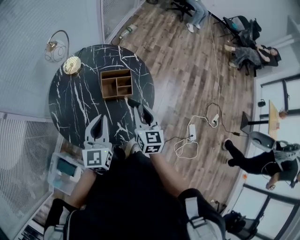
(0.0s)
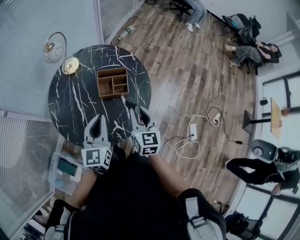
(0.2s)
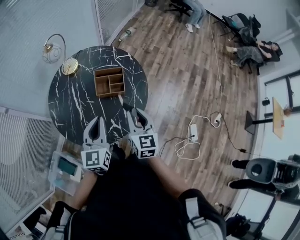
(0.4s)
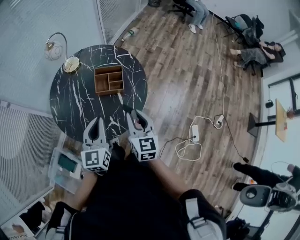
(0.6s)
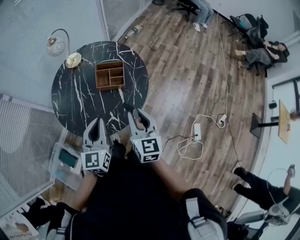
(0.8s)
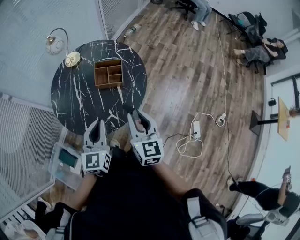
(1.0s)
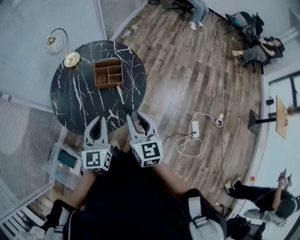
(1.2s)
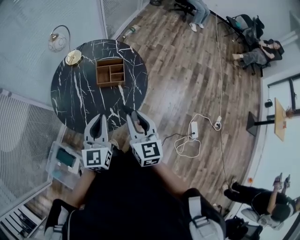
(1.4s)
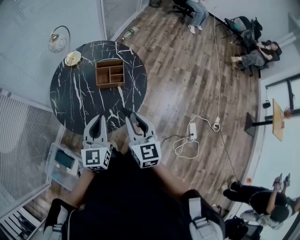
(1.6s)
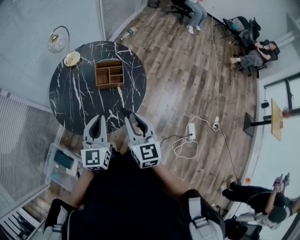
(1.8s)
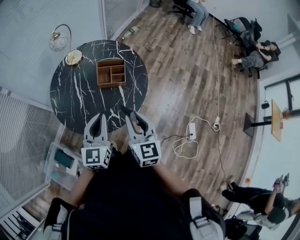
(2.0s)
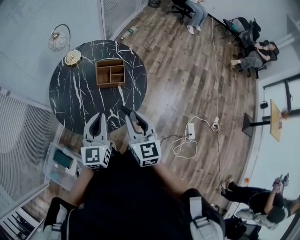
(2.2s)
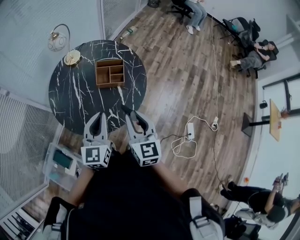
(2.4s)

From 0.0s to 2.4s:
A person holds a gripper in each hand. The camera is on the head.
From 0.0s to 1.2s: The left gripper moves backward and to the right, about 15 cm. Meanwhile the right gripper heads backward and upward, covering roughly 15 cm.
From 1.2s to 2.4s: The grippers stay close to where they were, moving slightly.

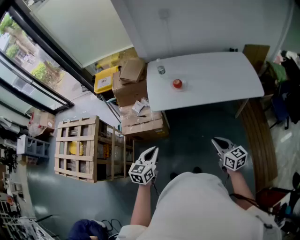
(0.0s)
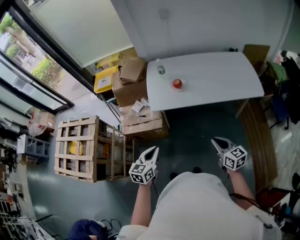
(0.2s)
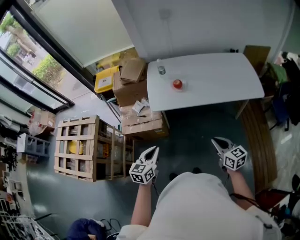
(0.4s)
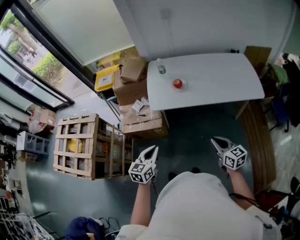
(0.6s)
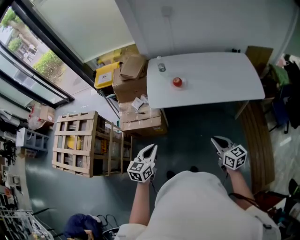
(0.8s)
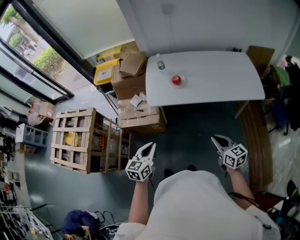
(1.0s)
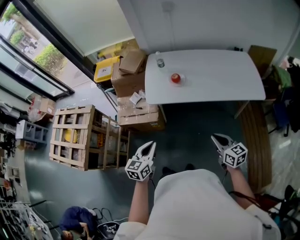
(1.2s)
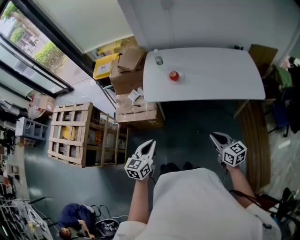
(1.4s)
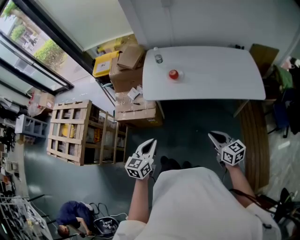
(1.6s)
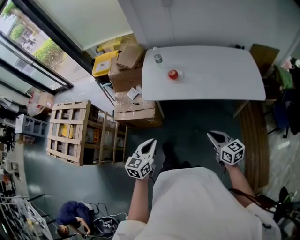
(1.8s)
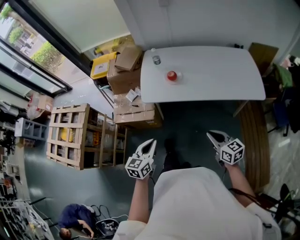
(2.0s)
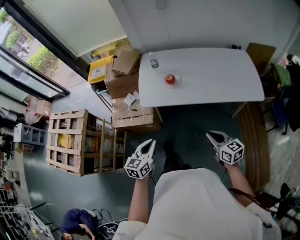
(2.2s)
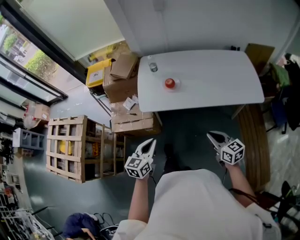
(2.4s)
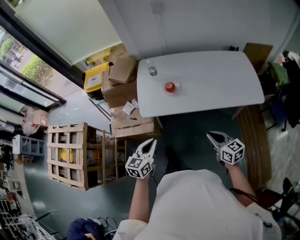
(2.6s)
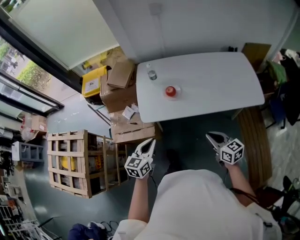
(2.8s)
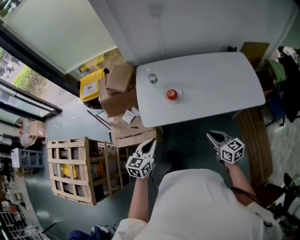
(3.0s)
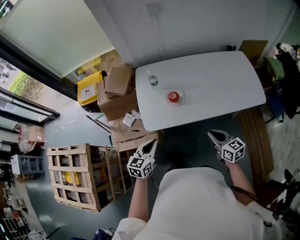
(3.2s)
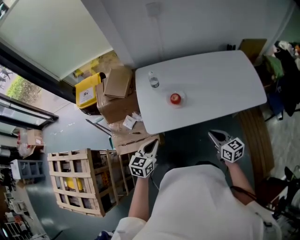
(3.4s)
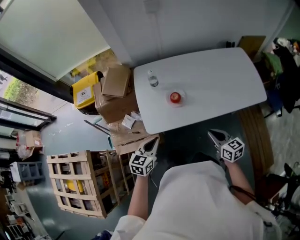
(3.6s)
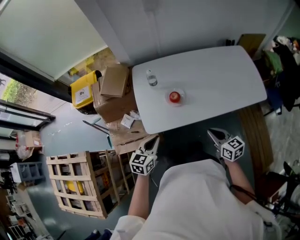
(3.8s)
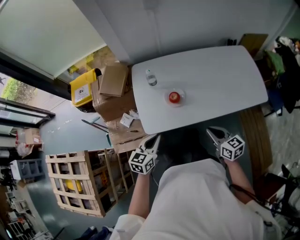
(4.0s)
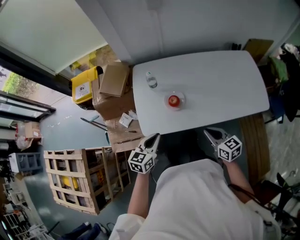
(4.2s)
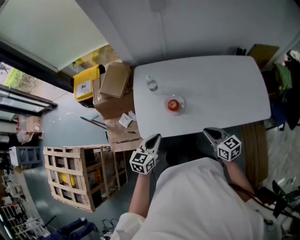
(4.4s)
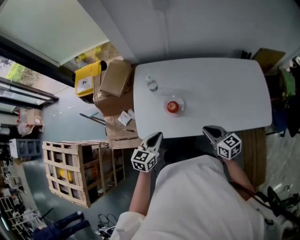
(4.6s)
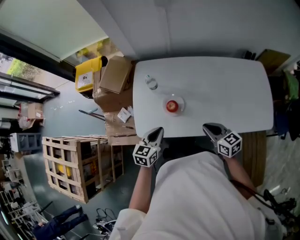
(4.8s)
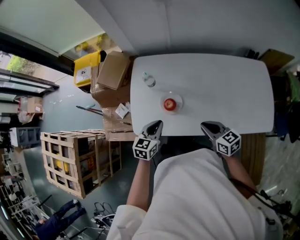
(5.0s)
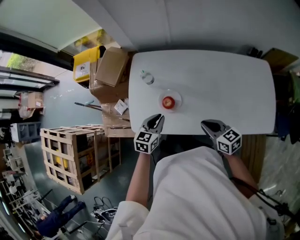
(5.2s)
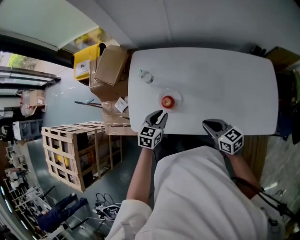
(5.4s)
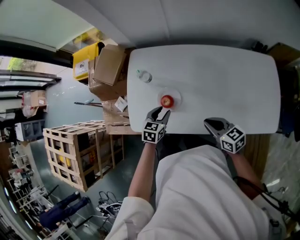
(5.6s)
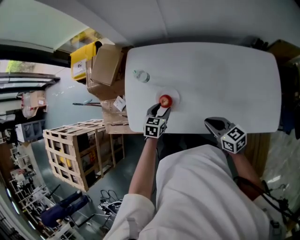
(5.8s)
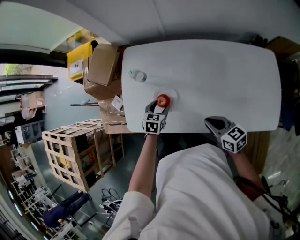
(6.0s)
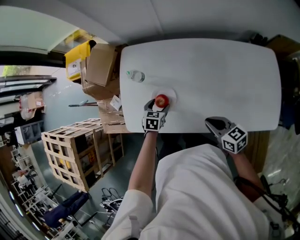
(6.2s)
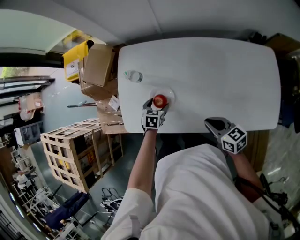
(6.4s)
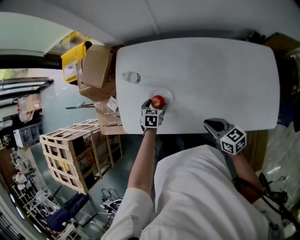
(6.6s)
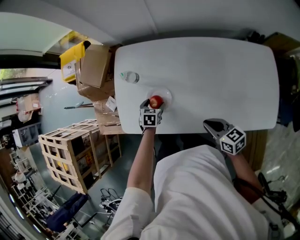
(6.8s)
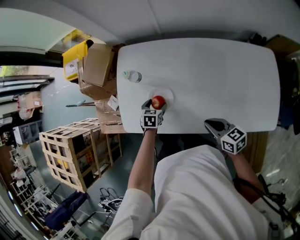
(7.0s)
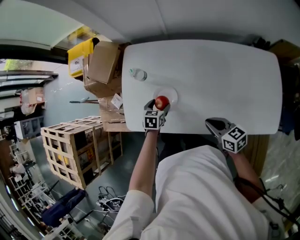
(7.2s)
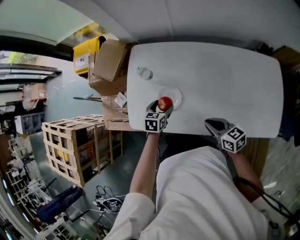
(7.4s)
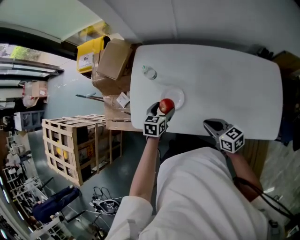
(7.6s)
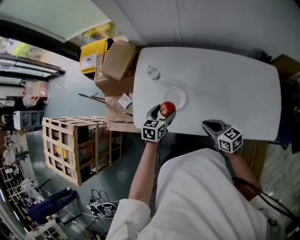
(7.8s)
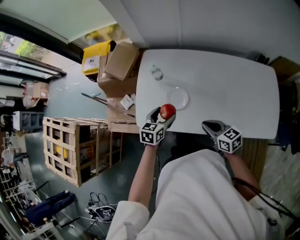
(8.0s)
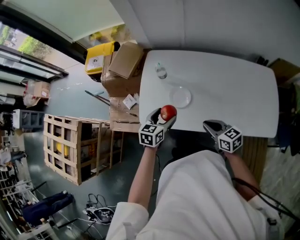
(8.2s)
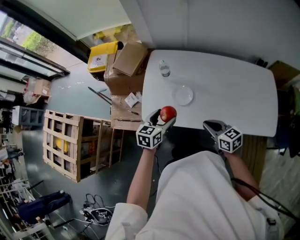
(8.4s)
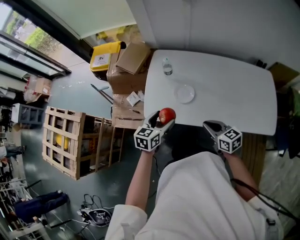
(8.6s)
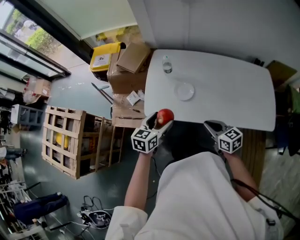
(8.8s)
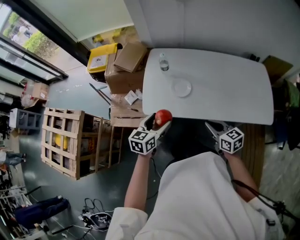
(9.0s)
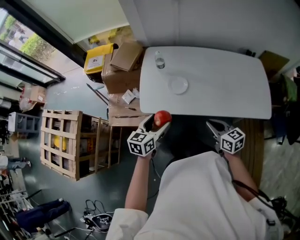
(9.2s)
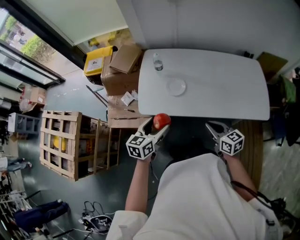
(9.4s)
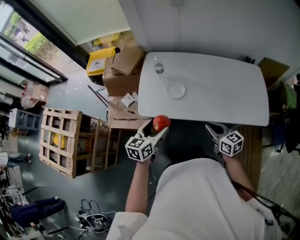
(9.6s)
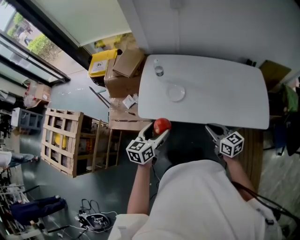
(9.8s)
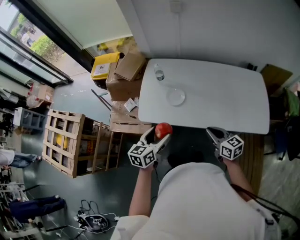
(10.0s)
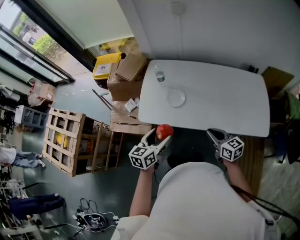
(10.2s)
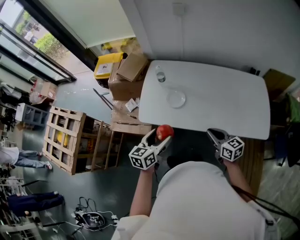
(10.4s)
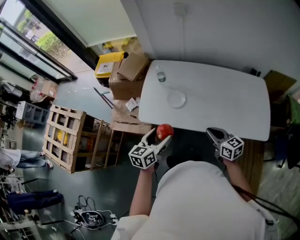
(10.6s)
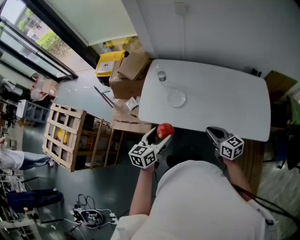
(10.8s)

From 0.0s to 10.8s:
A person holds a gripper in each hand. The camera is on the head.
From 0.0s to 1.6s: Both grippers move to the right, approximately 5 cm.
From 1.6s to 3.0s: Both grippers move forward, approximately 20 cm.
From 3.0s to 4.6s: Both grippers move forward, some 15 cm.
From 4.6s to 6.2s: The right gripper is displaced to the right, downward and forward by about 10 cm. The left gripper heads downward, forward and to the right, covering about 25 cm, swivels roughly 30 degrees, and opens its fingers.
From 6.2s to 7.8s: The left gripper goes roughly 10 cm upward; the right gripper travels to the left by some 5 cm.
From 7.8s to 9.2s: The left gripper heads backward, upward and to the left, covering roughly 25 cm, while the right gripper shifts roughly 15 cm backward.
From 9.2s to 10.8s: The grippers both shift to the right by roughly 5 cm.

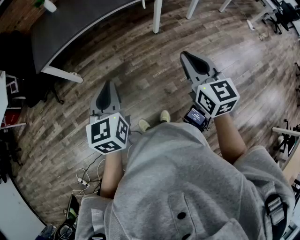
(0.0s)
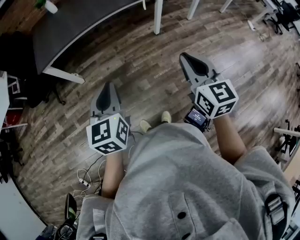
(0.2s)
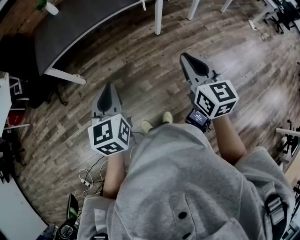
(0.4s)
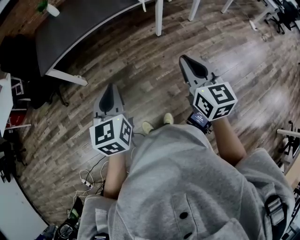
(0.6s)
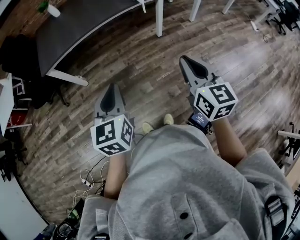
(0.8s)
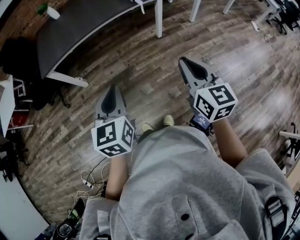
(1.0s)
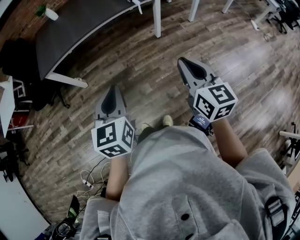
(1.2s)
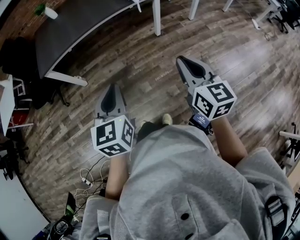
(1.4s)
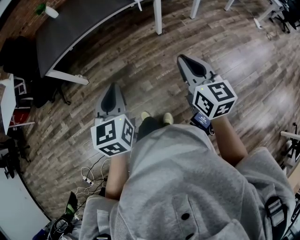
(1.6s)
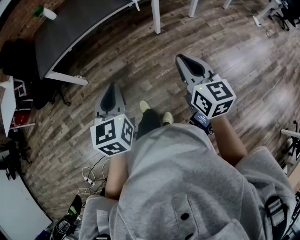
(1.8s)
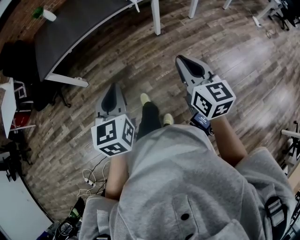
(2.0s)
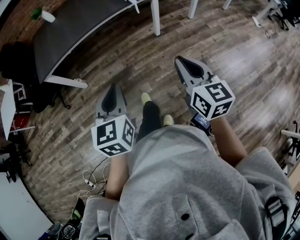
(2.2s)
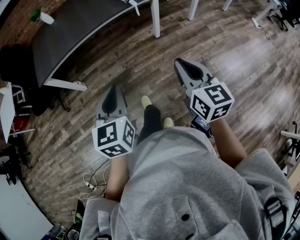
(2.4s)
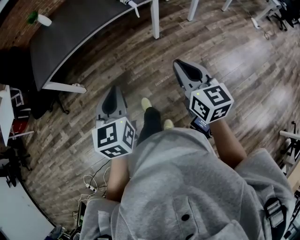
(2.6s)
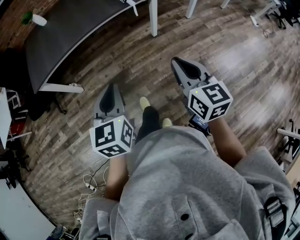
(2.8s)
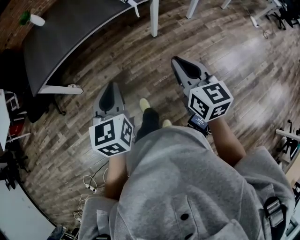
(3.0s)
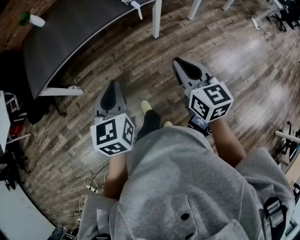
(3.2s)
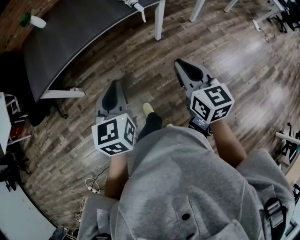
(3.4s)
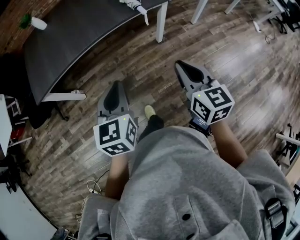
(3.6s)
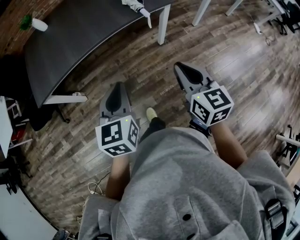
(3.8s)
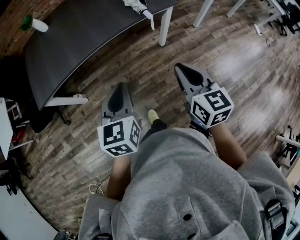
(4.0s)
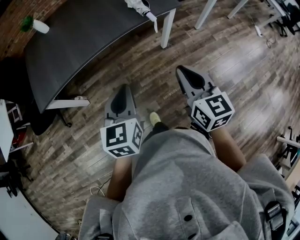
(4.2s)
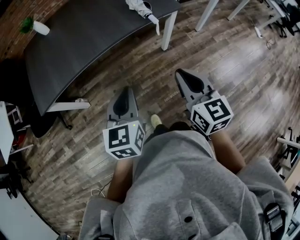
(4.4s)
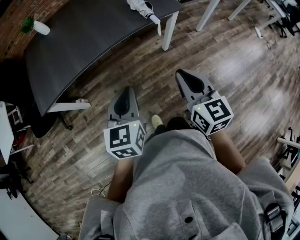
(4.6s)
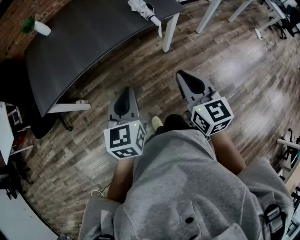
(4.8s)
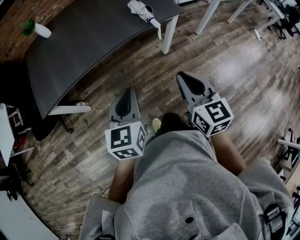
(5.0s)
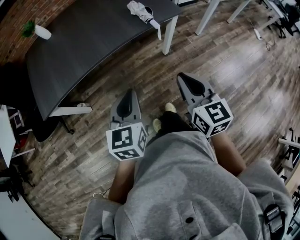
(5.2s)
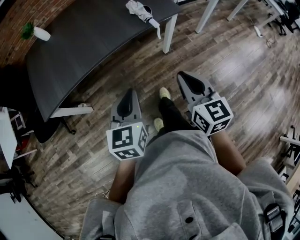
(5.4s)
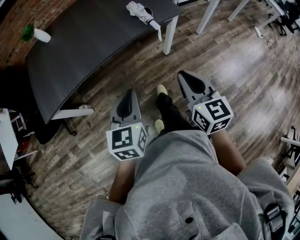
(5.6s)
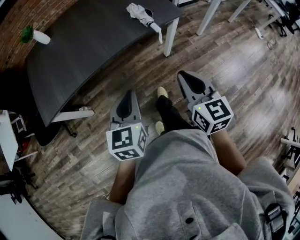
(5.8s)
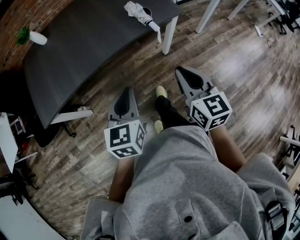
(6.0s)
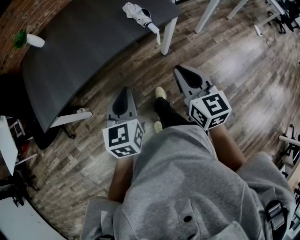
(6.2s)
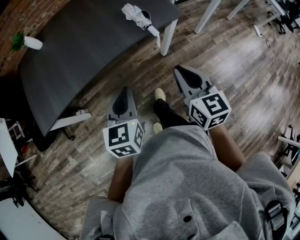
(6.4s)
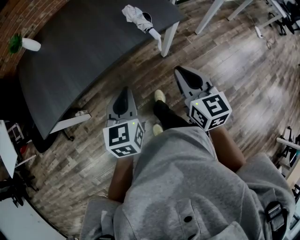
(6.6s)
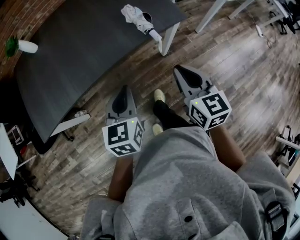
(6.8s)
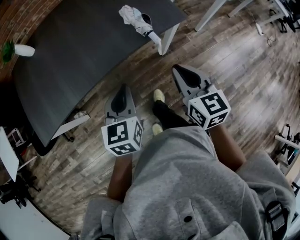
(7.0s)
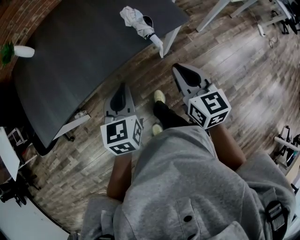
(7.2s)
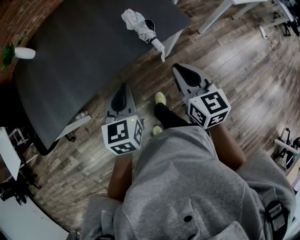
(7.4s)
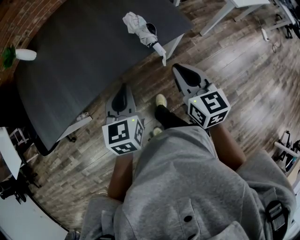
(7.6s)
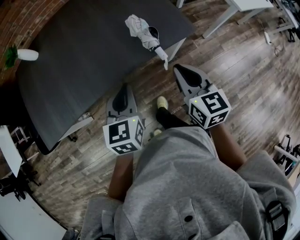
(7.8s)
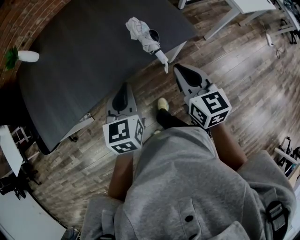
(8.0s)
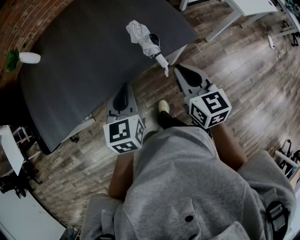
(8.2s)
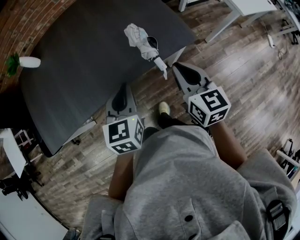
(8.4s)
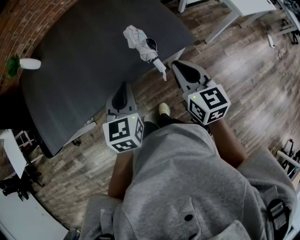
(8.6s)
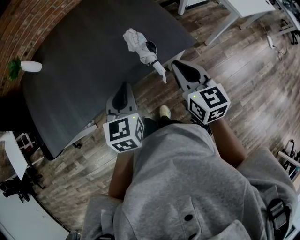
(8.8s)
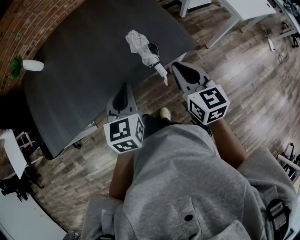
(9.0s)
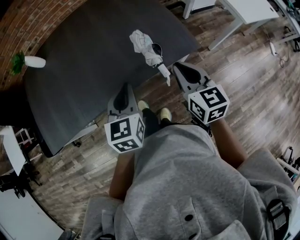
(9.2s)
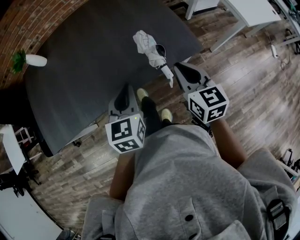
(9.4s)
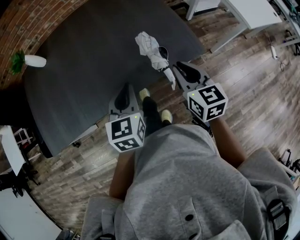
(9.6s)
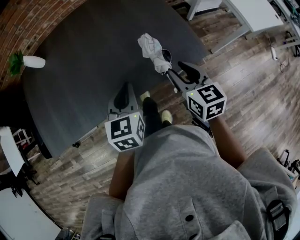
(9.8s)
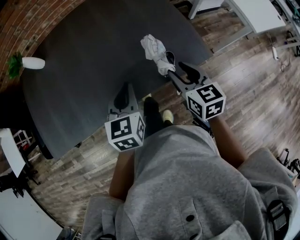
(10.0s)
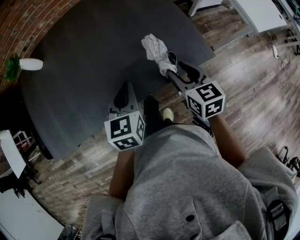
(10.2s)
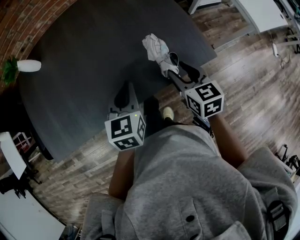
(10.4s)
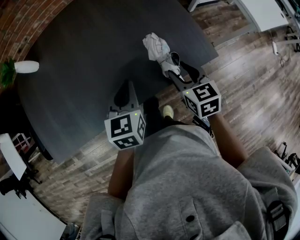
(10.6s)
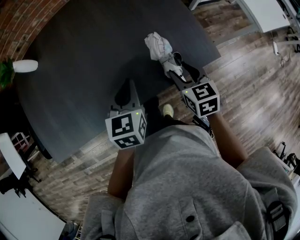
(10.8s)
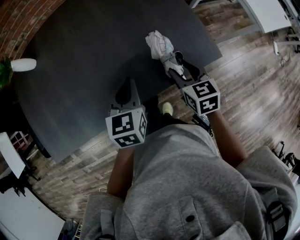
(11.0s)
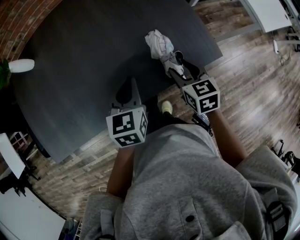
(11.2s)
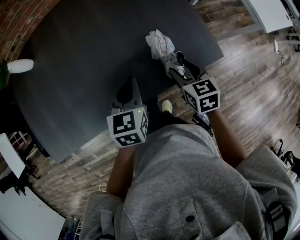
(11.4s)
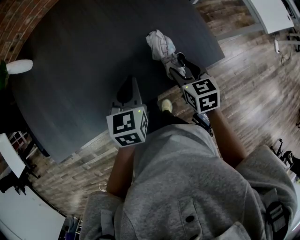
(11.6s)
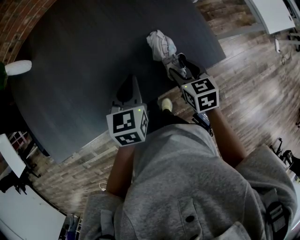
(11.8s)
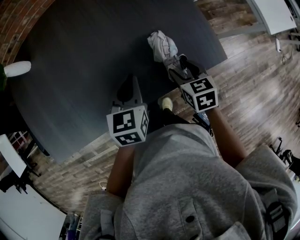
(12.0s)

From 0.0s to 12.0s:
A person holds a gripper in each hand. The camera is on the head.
From 0.0s to 1.6s: Both grippers move to the right, about 10 cm.
From 1.6s to 3.0s: The grippers both shift forward by approximately 15 cm.
From 3.0s to 4.4s: The left gripper shifts some 15 cm forward. The right gripper heads forward and to the left, covering roughly 15 cm.
From 4.4s to 6.0s: Both grippers travel together forward, roughly 10 cm.
From 6.0s to 7.6s: The grippers both shift forward by approximately 20 cm.
From 7.6s to 9.0s: Both grippers travel together forward, approximately 10 cm.
From 9.0s to 10.4s: The right gripper goes roughly 15 cm forward, downward and to the left, and opens, while the left gripper moves forward and to the left, roughly 10 cm.
From 10.4s to 12.0s: The left gripper is displaced forward and downward by about 10 cm; the right gripper goes approximately 10 cm downward.
